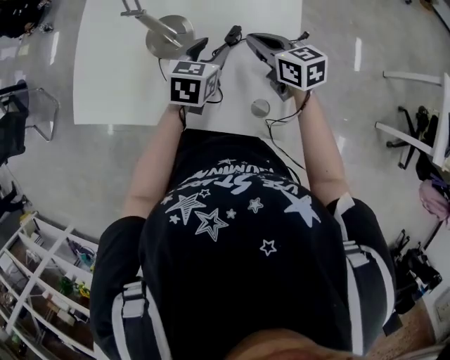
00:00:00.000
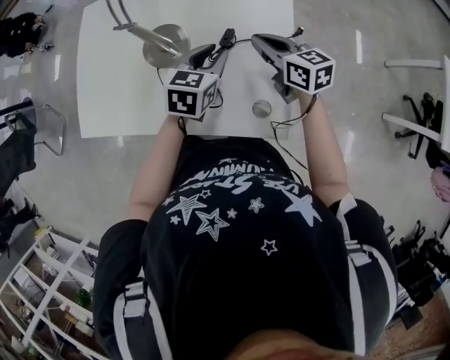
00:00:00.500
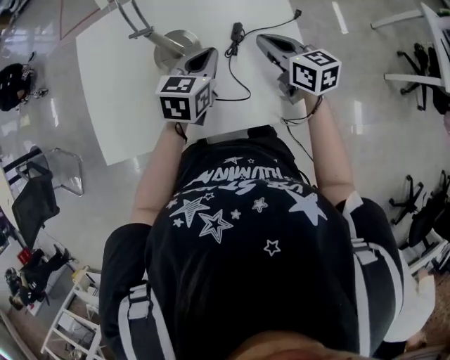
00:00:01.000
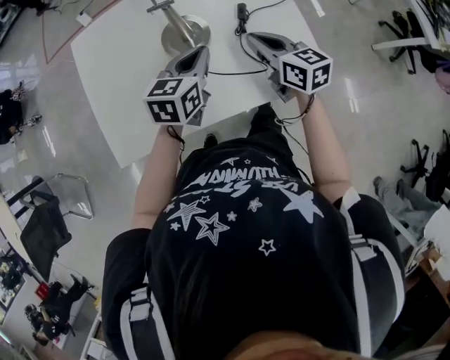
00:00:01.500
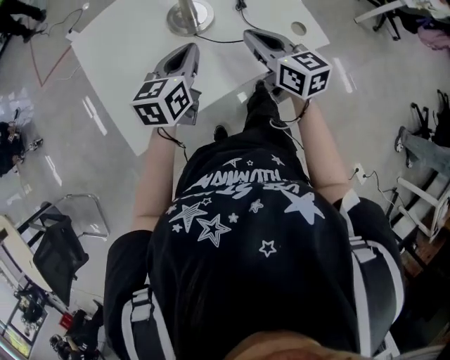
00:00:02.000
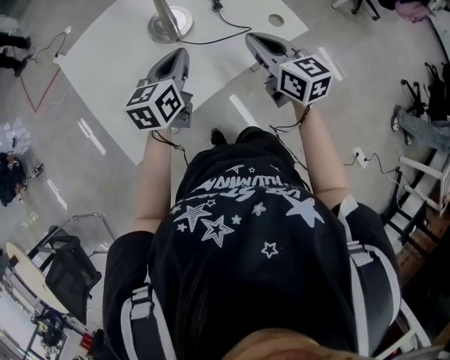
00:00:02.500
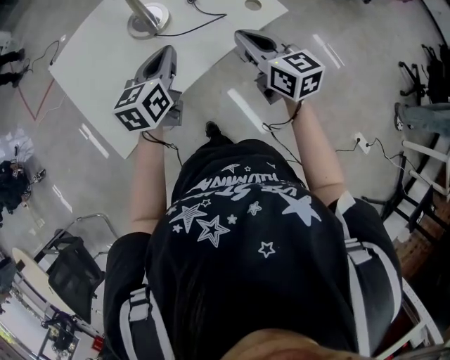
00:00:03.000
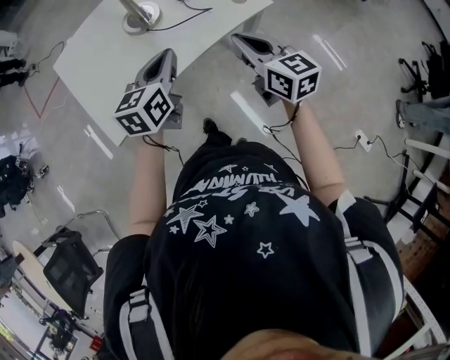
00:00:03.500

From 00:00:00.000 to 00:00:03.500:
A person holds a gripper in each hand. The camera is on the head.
From 00:00:00.000 to 00:00:02.000: The right gripper changes place by roughly 25 cm, and swivels some 40 degrees. Meanwhile the left gripper ends up roughly 30 cm from where it was, turns by roughly 40 degrees, and closes its fingers.
From 00:00:02.000 to 00:00:03.500: Both grippers move backward and to the right, some 15 cm.

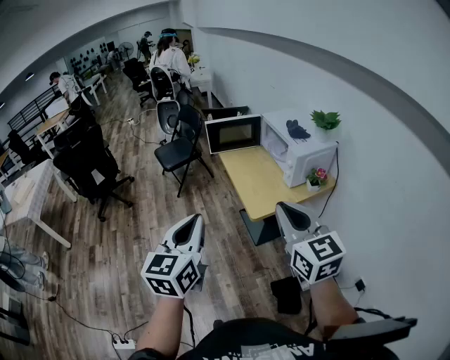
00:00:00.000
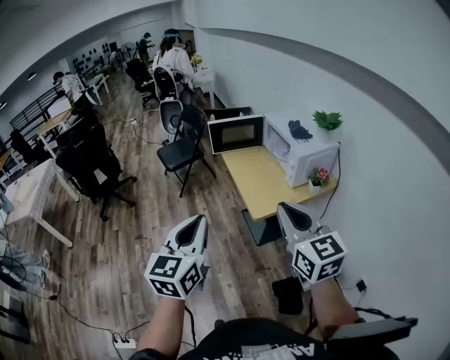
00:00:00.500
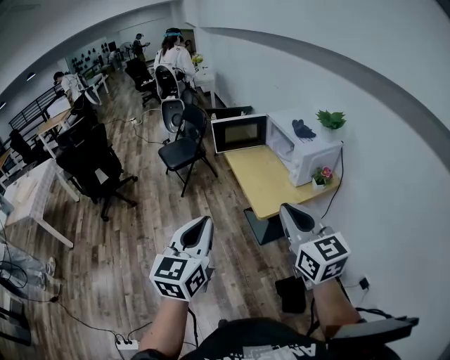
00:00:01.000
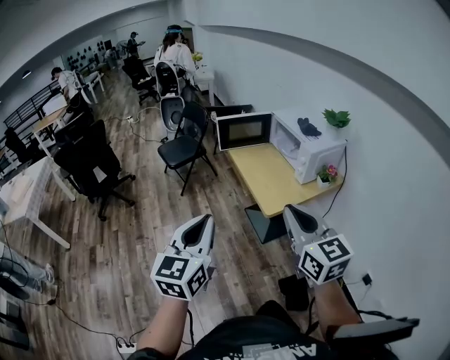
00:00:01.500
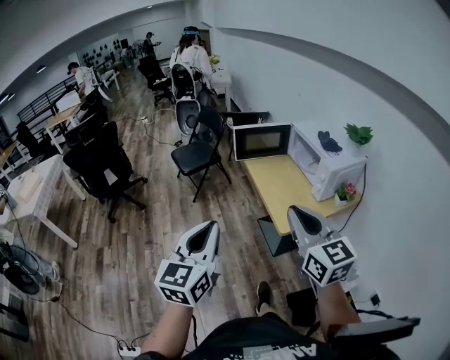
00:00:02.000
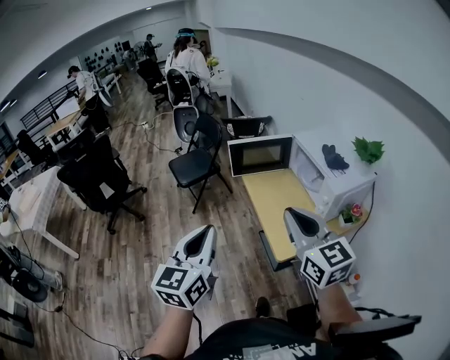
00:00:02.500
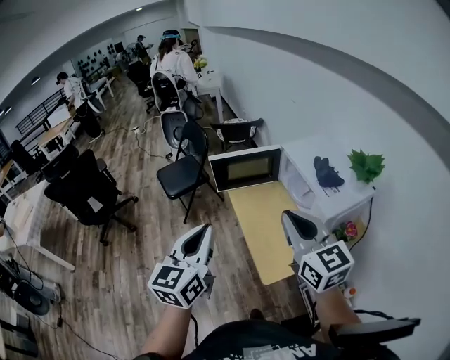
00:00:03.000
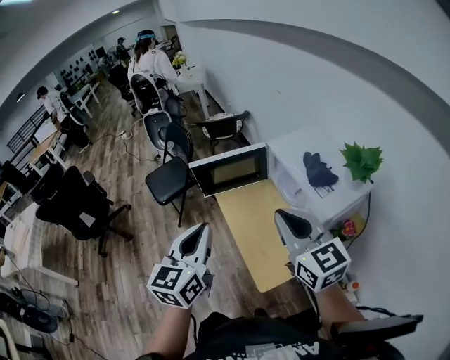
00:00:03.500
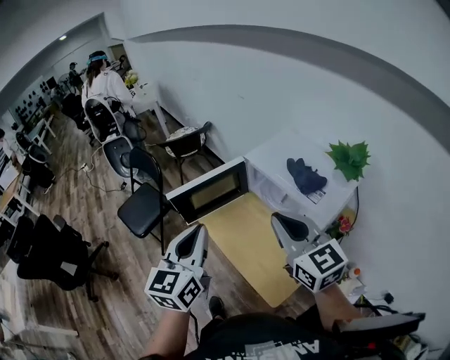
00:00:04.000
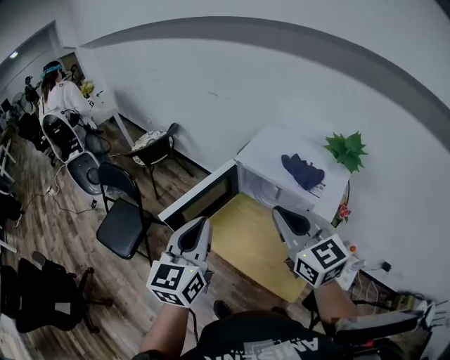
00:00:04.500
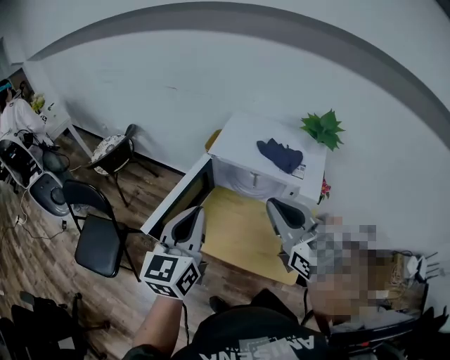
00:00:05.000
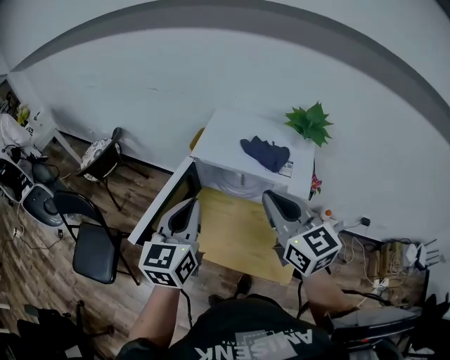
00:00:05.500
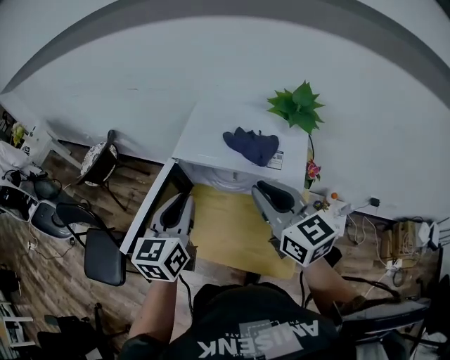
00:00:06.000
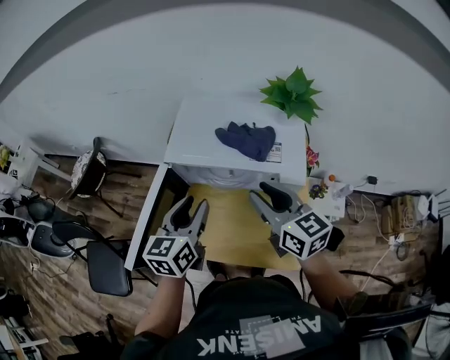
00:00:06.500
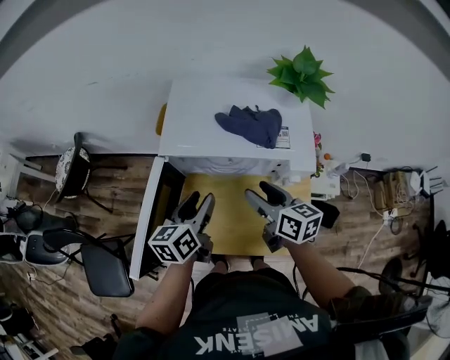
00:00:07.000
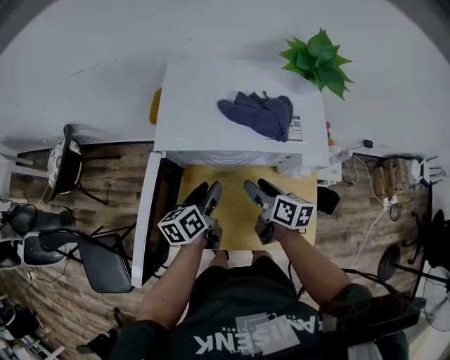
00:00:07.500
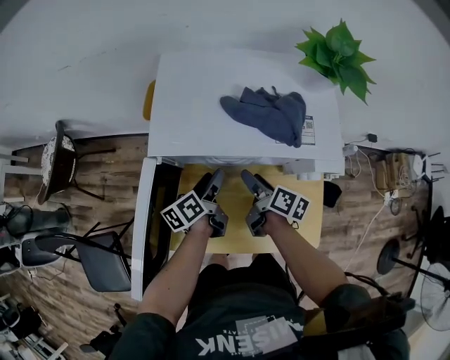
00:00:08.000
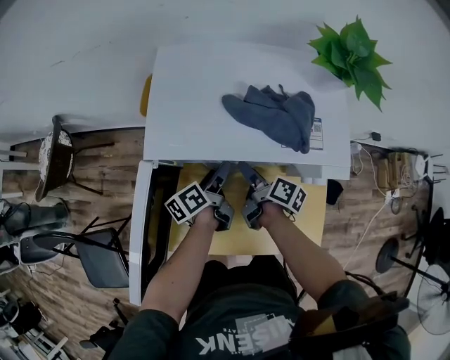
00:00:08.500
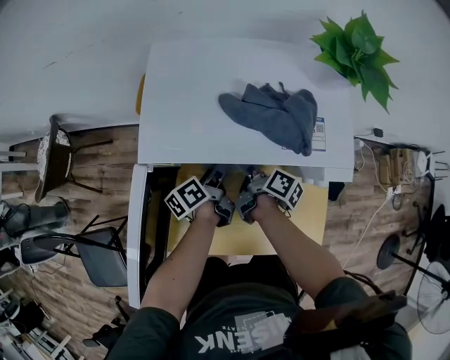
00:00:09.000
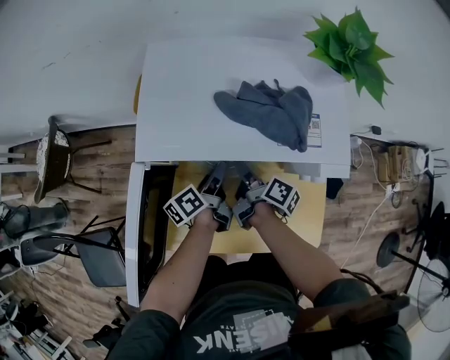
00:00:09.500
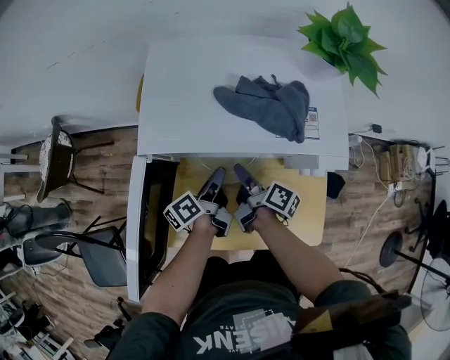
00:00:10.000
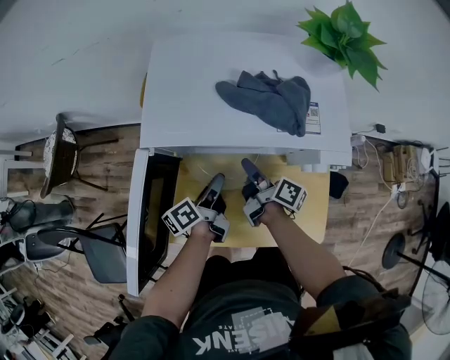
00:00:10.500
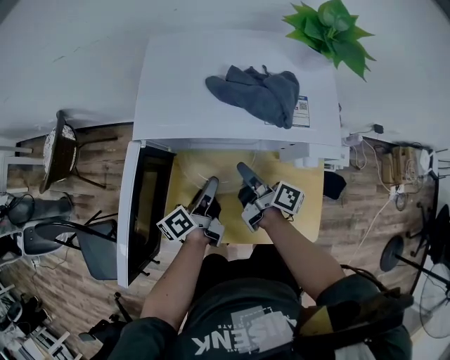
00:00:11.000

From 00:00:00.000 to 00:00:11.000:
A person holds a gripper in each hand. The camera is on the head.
From 00:00:00.000 to 00:00:02.000: The two grippers go some 10 cm to the left and forward.
From 00:00:02.000 to 00:00:03.500: The grippers both shift forward and to the right by some 35 cm.
From 00:00:03.500 to 00:00:05.500: The right gripper ends up roughly 15 cm from where it was, and turns by roughly 50 degrees. Meanwhile the left gripper changes place by roughly 25 cm, and rotates roughly 50 degrees.
From 00:00:05.500 to 00:00:07.500: The right gripper heads downward, covering some 30 cm, rolls clockwise, seen from behind, by some 50 degrees, and opens up. Meanwhile the left gripper goes some 30 cm downward and forward, rotates some 40 degrees, and opens up.
From 00:00:07.500 to 00:00:09.000: The left gripper travels downward and forward by some 10 cm, and rotates some 30 degrees, while the right gripper goes some 10 cm forward and downward, and turns by approximately 30 degrees.
From 00:00:09.000 to 00:00:11.000: The right gripper shifts approximately 10 cm backward and upward, rotates approximately 30 degrees, and closes up. Meanwhile the left gripper heads backward, covering about 10 cm, and closes.

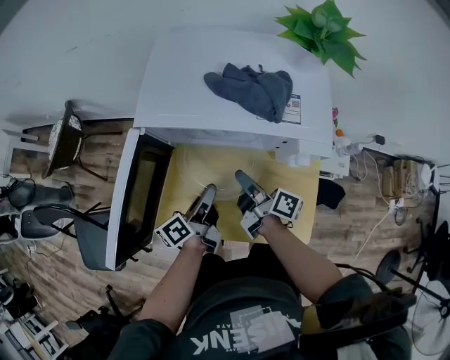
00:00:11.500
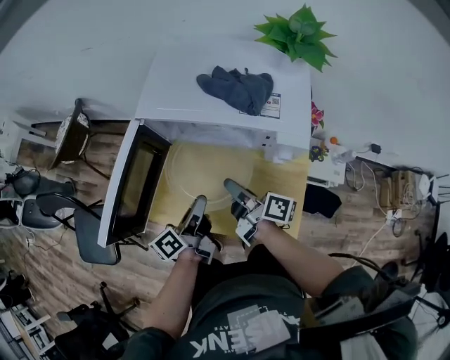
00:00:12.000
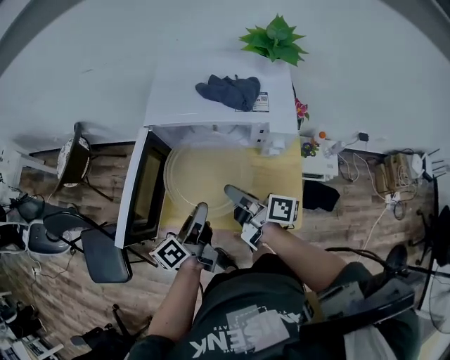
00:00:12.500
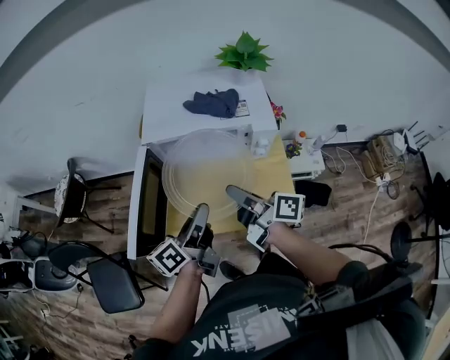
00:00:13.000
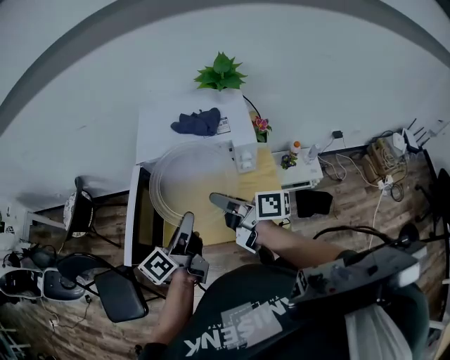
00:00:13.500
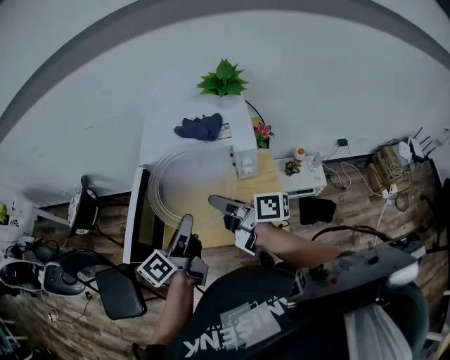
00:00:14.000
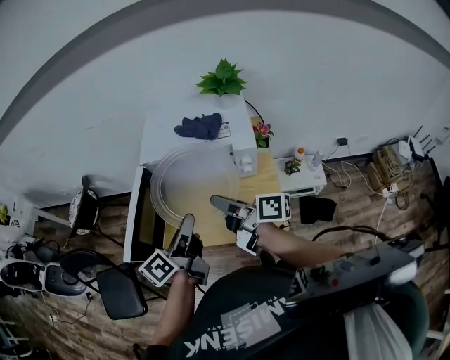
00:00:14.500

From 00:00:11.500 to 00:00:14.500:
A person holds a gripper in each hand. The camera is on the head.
From 00:00:11.500 to 00:00:13.000: Both grippers move upward and backward, approximately 20 cm.
From 00:00:13.000 to 00:00:14.500: The left gripper shifts some 5 cm upward.

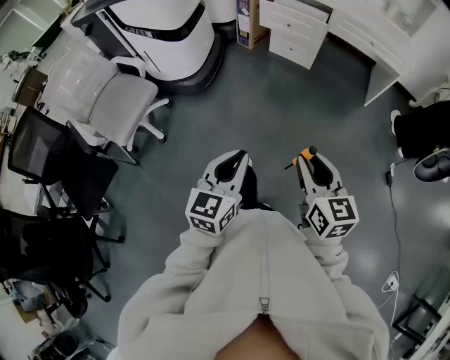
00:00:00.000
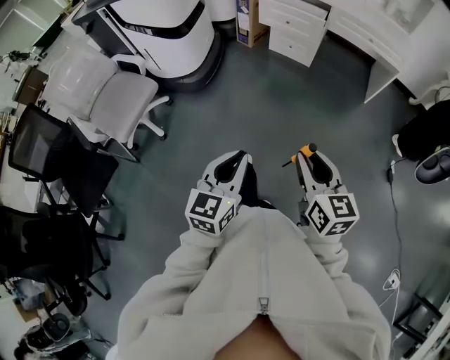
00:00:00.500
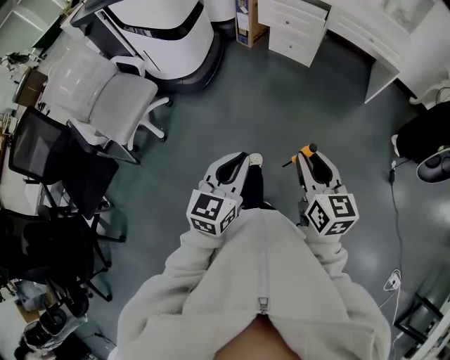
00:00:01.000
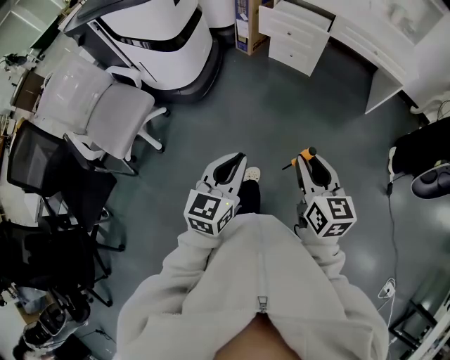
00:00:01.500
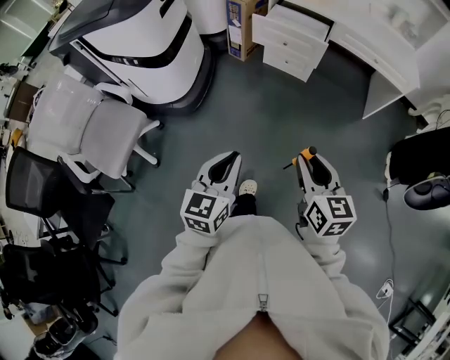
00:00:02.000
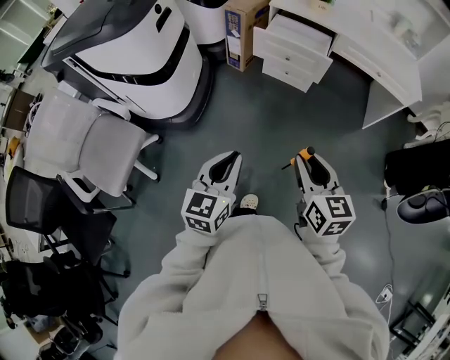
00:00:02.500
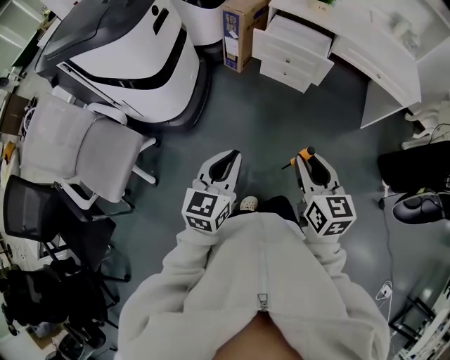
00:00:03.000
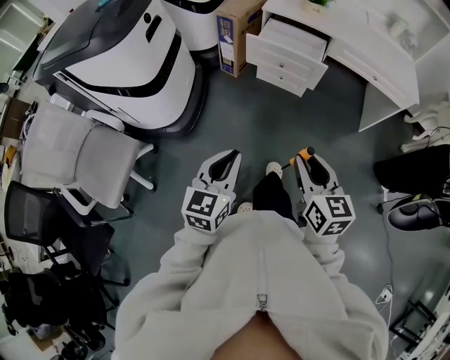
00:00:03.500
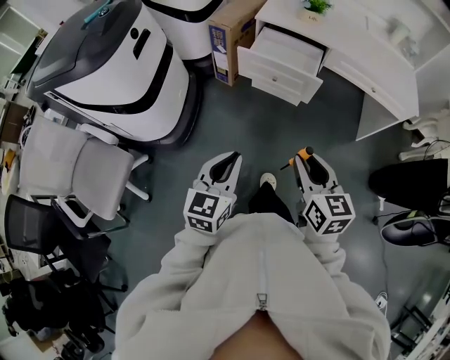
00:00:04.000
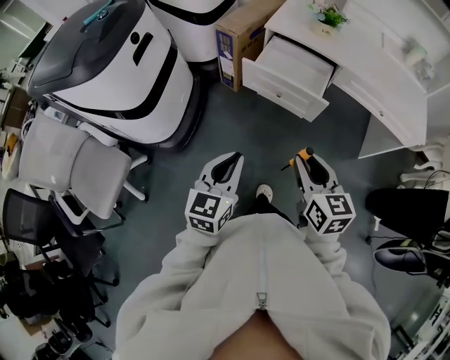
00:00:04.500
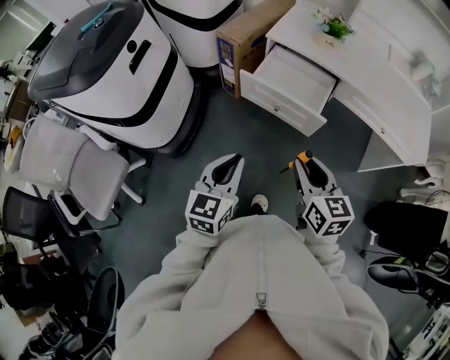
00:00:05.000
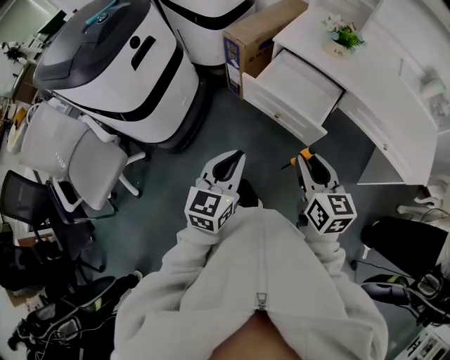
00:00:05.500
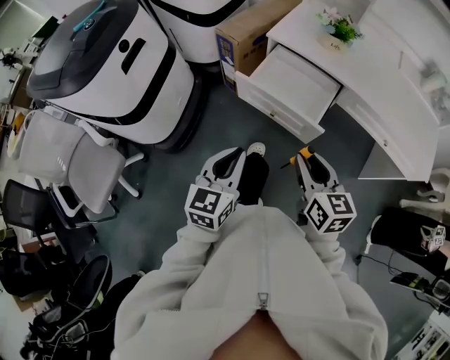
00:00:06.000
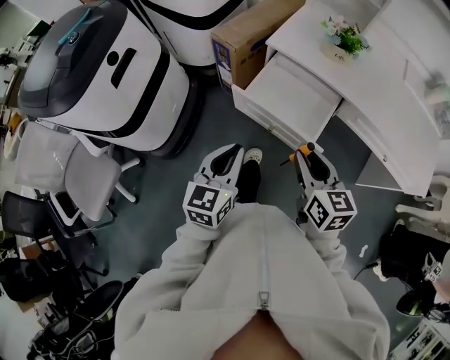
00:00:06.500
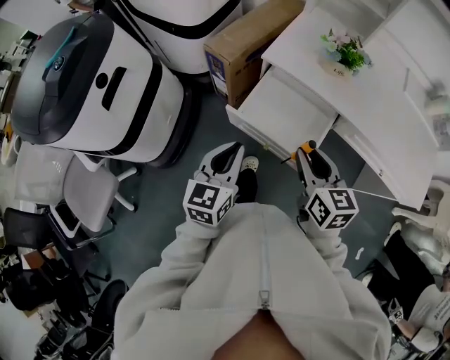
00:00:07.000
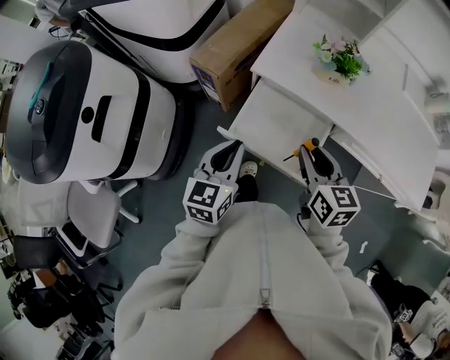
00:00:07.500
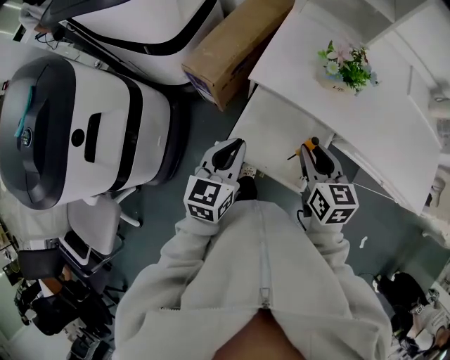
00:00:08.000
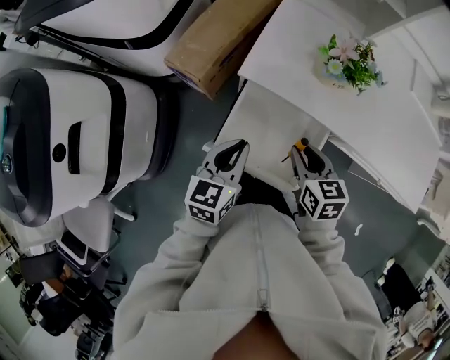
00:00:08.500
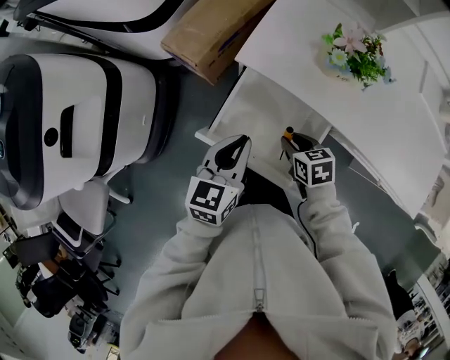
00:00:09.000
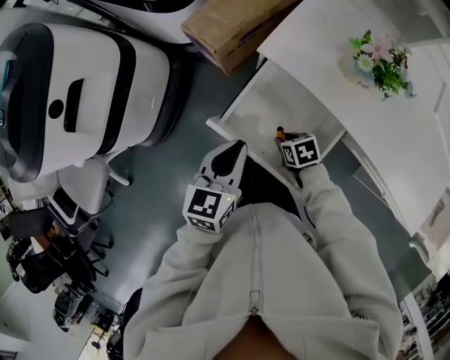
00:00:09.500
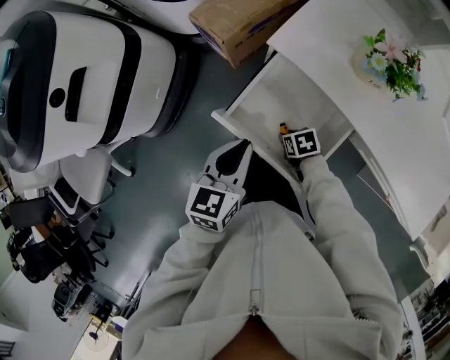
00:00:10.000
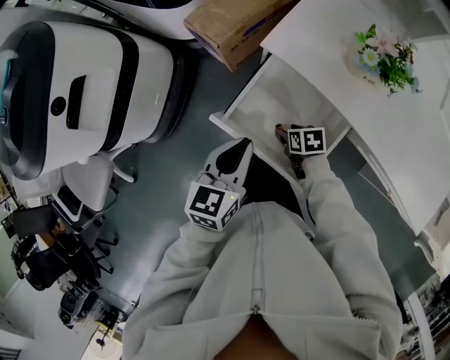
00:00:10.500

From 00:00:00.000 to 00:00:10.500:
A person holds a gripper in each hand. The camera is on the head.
From 00:00:00.000 to 00:00:02.000: Both grippers move forward, some 20 cm.
From 00:00:02.000 to 00:00:04.000: Both grippers move forward, about 20 cm.
From 00:00:04.000 to 00:00:06.500: Both grippers travel together forward, some 30 cm.
From 00:00:06.500 to 00:00:08.500: The left gripper heads forward, covering roughly 25 cm; the right gripper goes approximately 25 cm forward and downward.
From 00:00:08.500 to 00:00:10.500: The right gripper travels downward by some 20 cm, rotates some 40 degrees, and opens its fingers.
